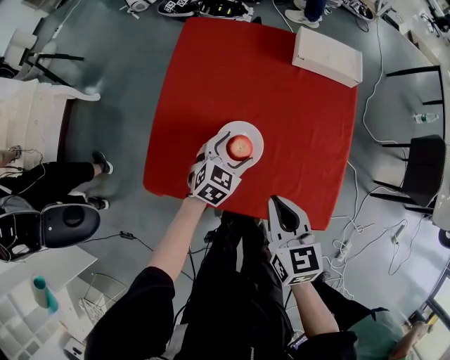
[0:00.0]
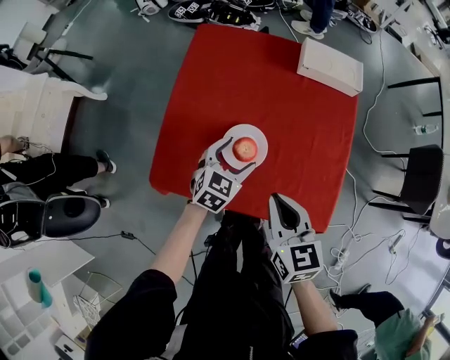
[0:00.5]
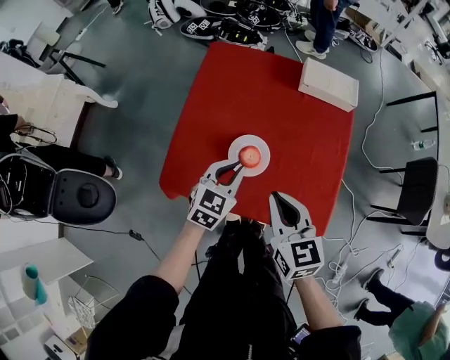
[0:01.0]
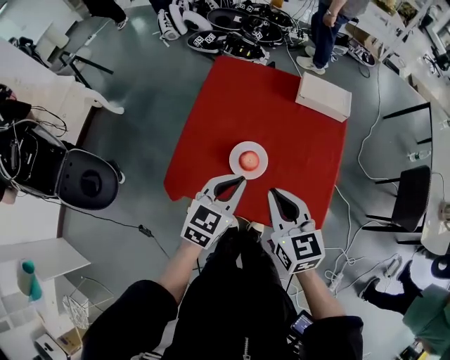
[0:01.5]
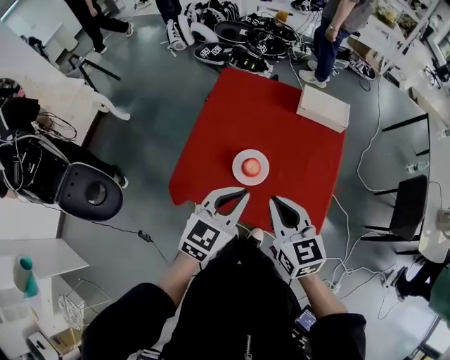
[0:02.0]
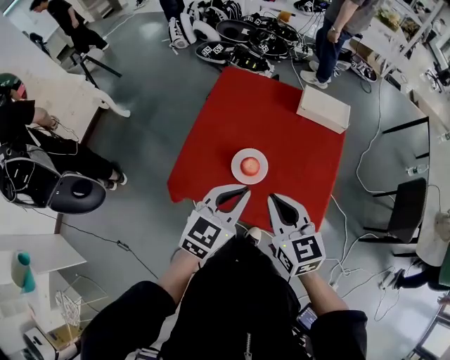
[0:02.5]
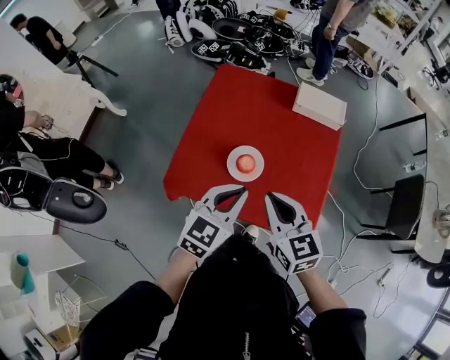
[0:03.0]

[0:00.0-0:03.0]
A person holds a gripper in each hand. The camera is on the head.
0:00.0 to 0:01.5: The right gripper heads upward, covering some 10 cm. Meanwhile the left gripper shifts roughly 25 cm upward and backward, turns by roughly 20 degrees, and closes.
0:01.5 to 0:03.0: The left gripper moves upward, approximately 5 cm.

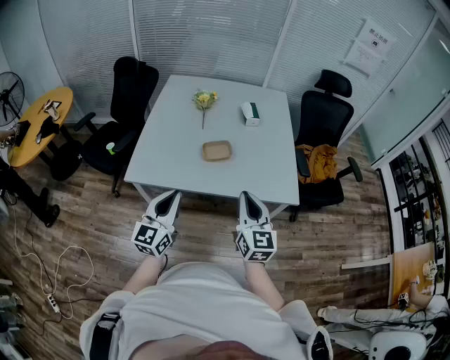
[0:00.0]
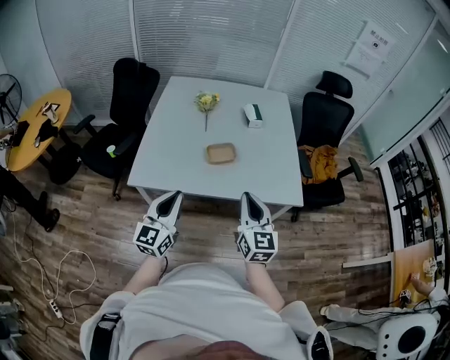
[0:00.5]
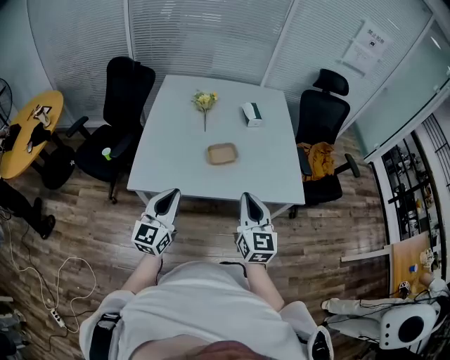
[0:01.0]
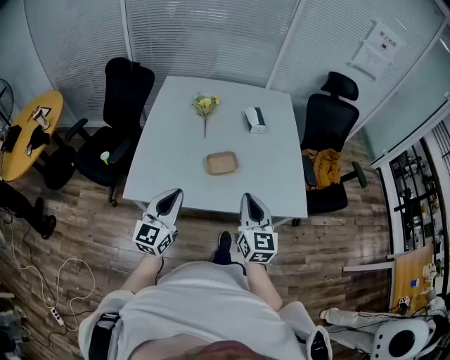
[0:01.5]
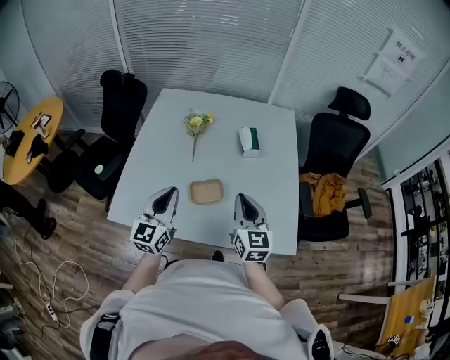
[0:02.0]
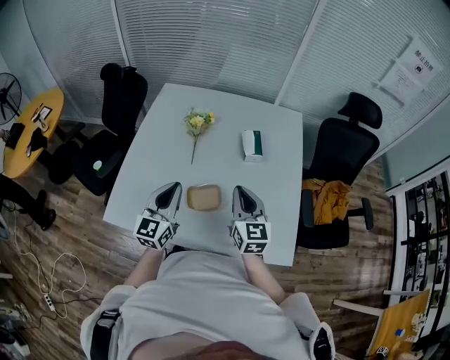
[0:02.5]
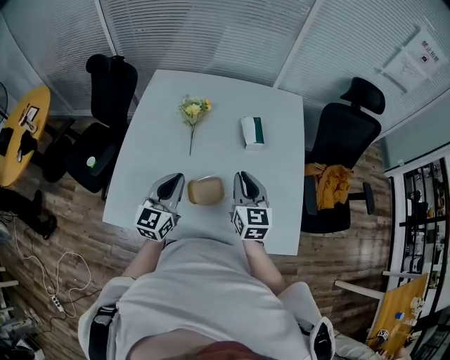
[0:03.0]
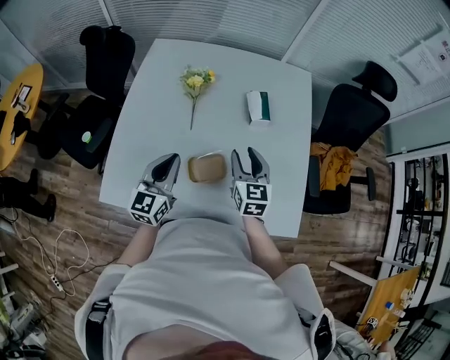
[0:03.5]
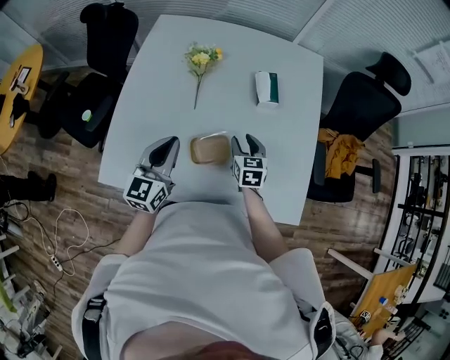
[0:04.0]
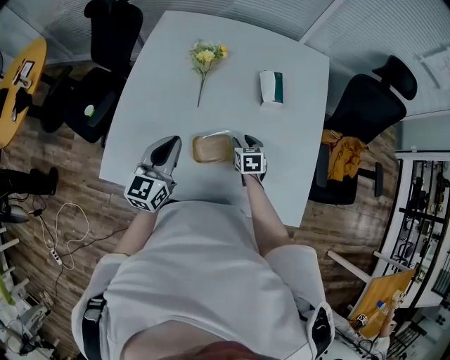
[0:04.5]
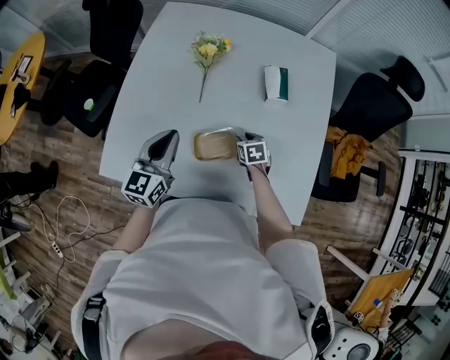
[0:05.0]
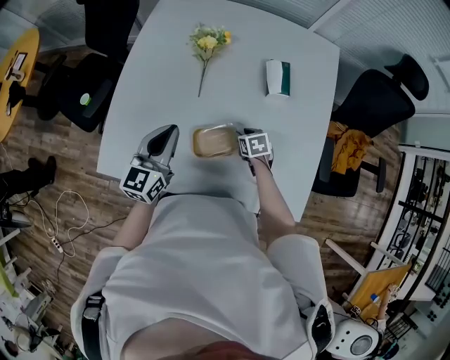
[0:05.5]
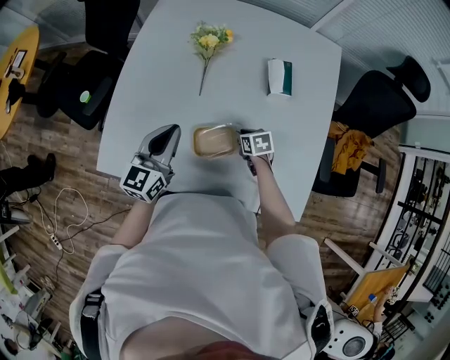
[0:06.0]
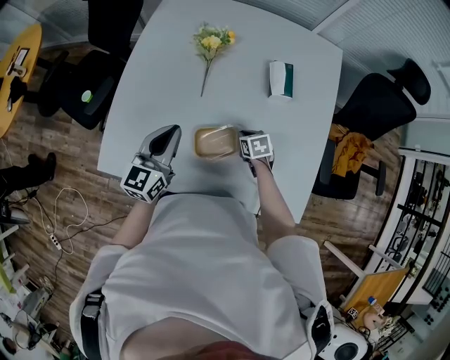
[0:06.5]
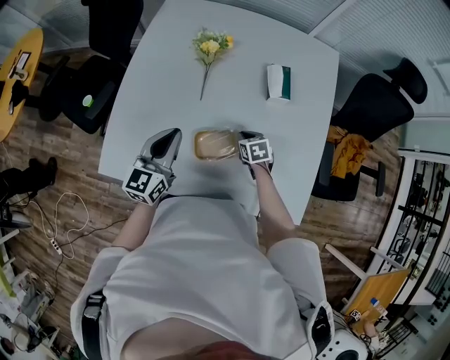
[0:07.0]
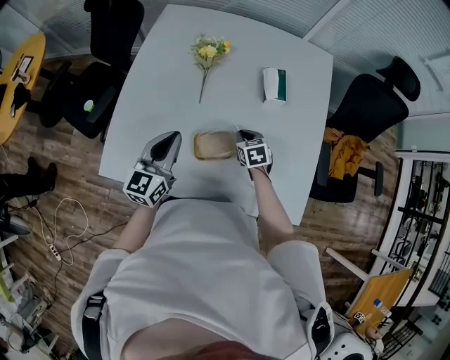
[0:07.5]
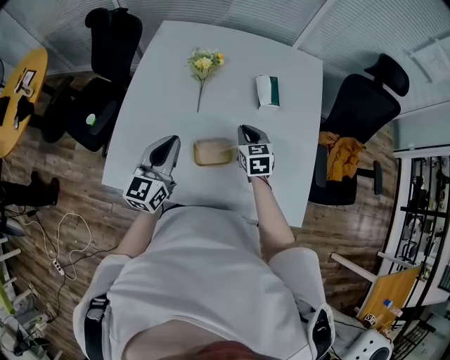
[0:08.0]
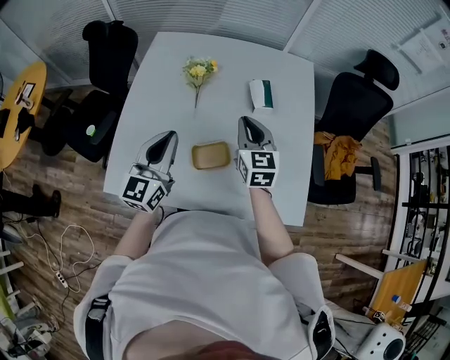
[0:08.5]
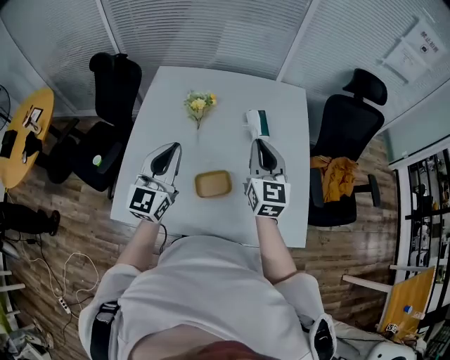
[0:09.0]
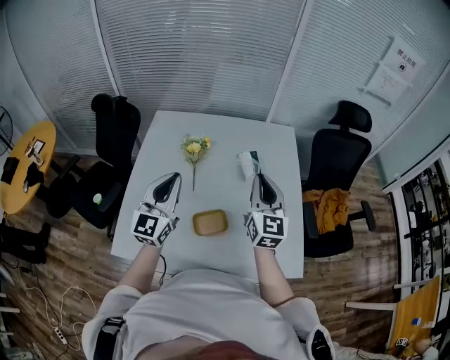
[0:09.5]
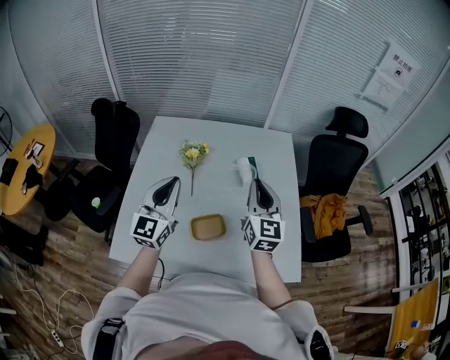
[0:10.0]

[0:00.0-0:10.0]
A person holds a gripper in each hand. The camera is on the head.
0:00.0 to 0:02.0: The two grippers go roughly 25 cm forward.
0:02.0 to 0:04.0: The left gripper heads forward and downward, covering approximately 15 cm. The right gripper is displaced downward and forward by roughly 25 cm, swivels roughly 30 degrees, and opens up.
0:04.0 to 0:06.0: The right gripper shifts approximately 15 cm downward, and swivels roughly 30 degrees.
0:06.0 to 0:08.0: The left gripper is displaced upward by about 5 cm. Meanwhile the right gripper travels upward by about 20 cm, and swivels roughly 30 degrees.
0:08.0 to 0:10.0: The left gripper is displaced upward by roughly 15 cm, and swivels approximately 20 degrees, while the right gripper heads upward, covering some 25 cm, and tilts its fingers roughly 40 degrees upward.

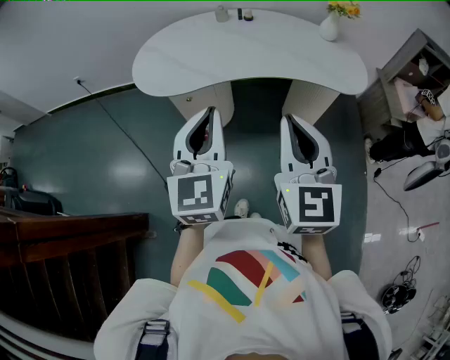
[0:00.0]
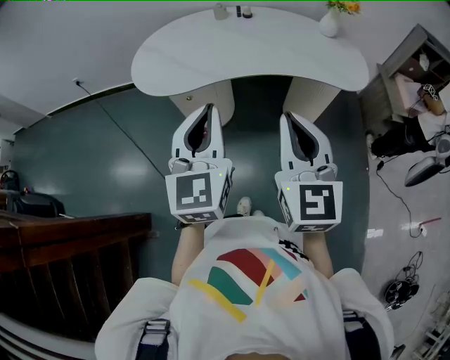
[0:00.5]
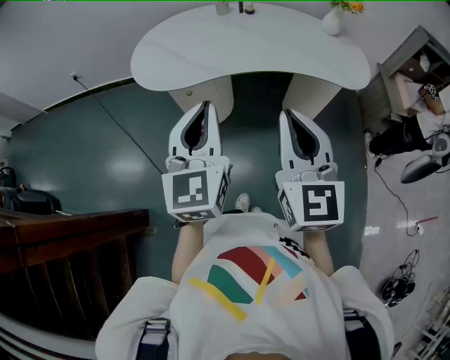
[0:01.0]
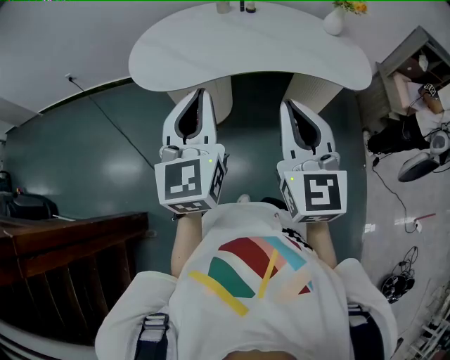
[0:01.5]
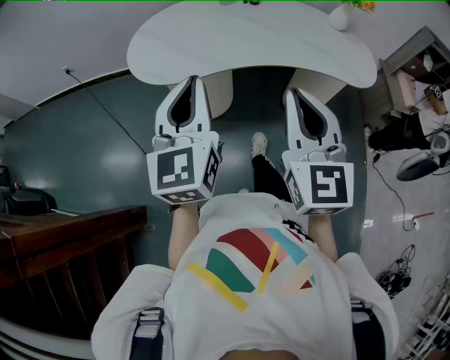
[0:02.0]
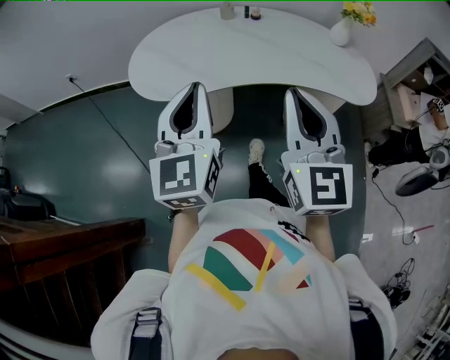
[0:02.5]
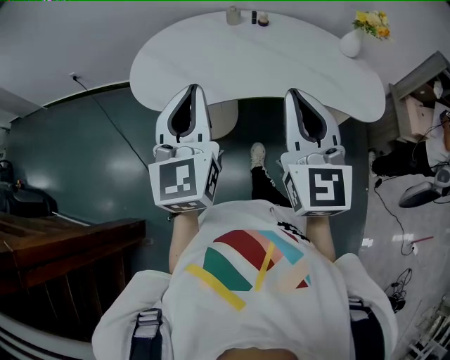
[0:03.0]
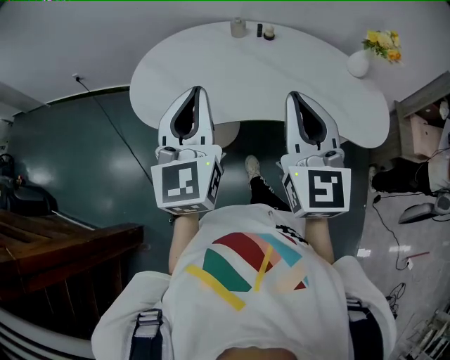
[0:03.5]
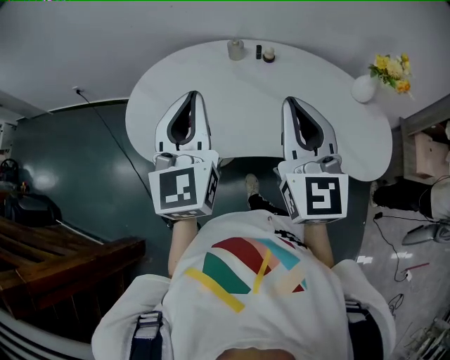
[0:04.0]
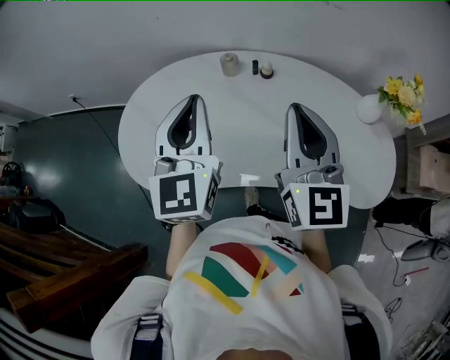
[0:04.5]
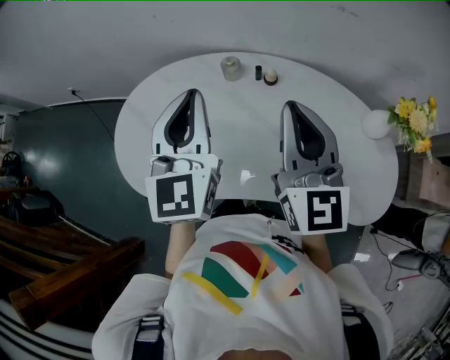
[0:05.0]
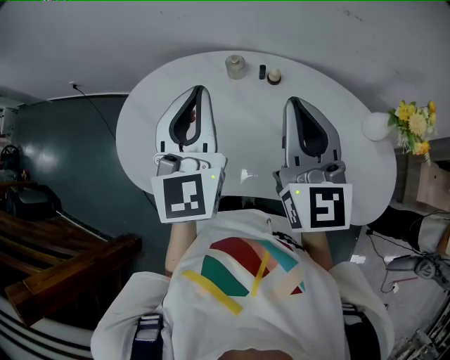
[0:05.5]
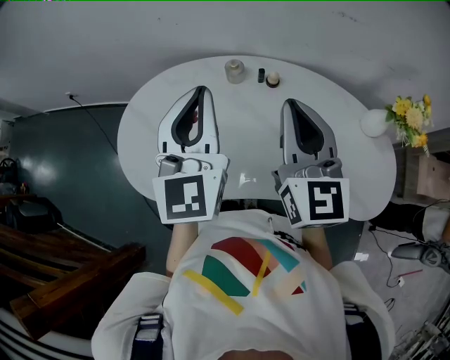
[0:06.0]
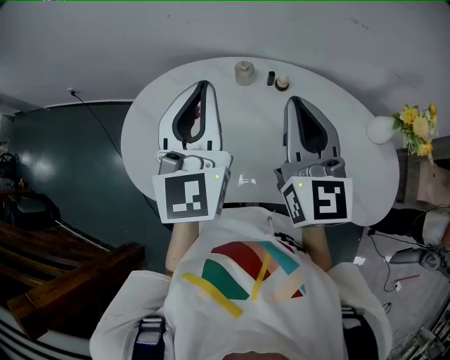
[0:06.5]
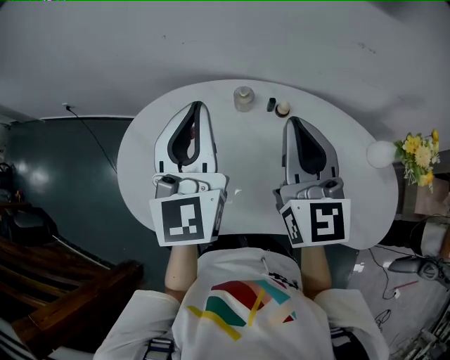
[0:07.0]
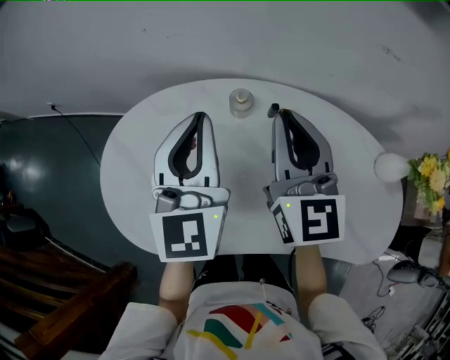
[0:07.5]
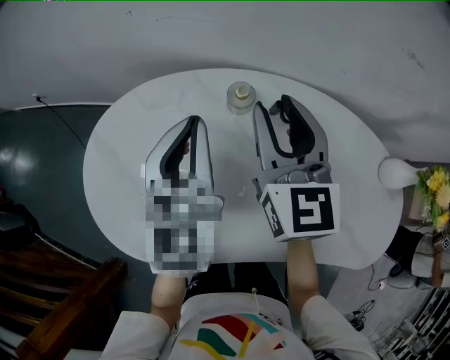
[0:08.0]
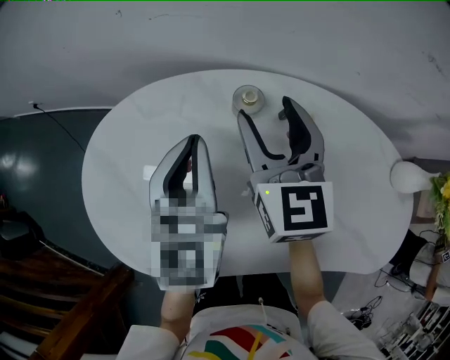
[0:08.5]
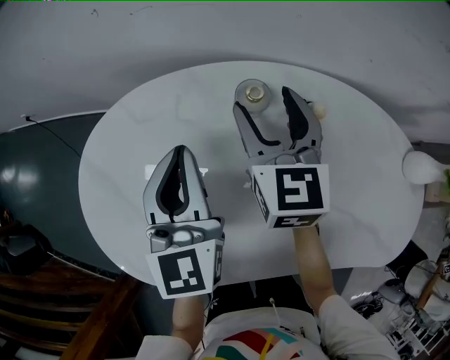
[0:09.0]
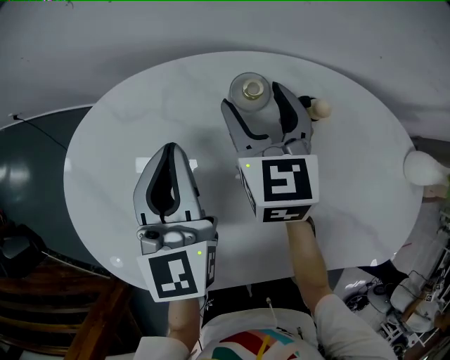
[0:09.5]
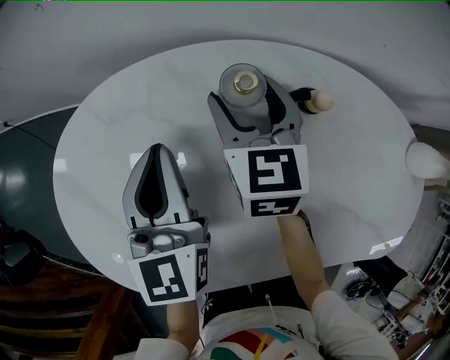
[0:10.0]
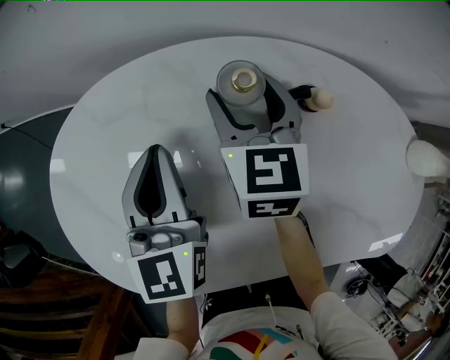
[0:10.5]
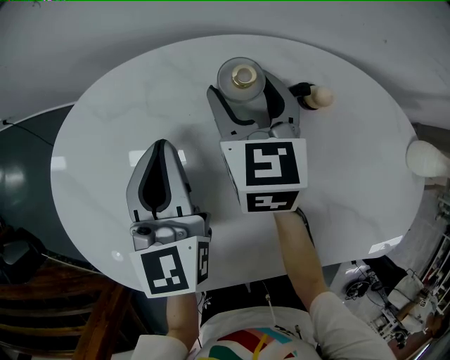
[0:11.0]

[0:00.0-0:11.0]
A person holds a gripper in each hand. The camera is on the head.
0:00.0 to 0:02.0: The left gripper is displaced to the left and forward by roughly 10 cm, while the right gripper heads forward, covering approximately 5 cm.
0:02.0 to 0:03.5: Both grippers travel together forward, about 15 cm.
0:03.5 to 0:05.5: Both grippers travel together forward, approximately 25 cm.
0:05.5 to 0:07.5: Both grippers travel together forward and downward, roughly 15 cm.
0:07.5 to 0:09.0: The left gripper goes roughly 15 cm downward, while the right gripper travels downward and forward by some 20 cm, and opens up.
0:09.0 to 0:11.0: The two grippers go some 10 cm downward.

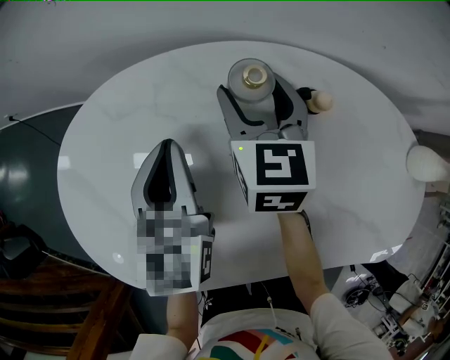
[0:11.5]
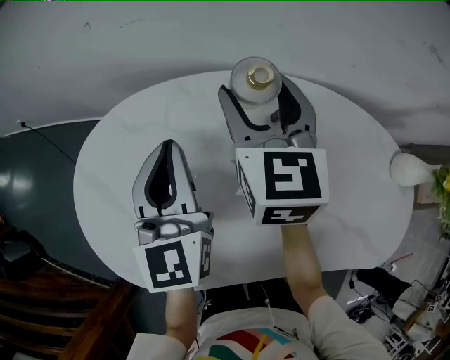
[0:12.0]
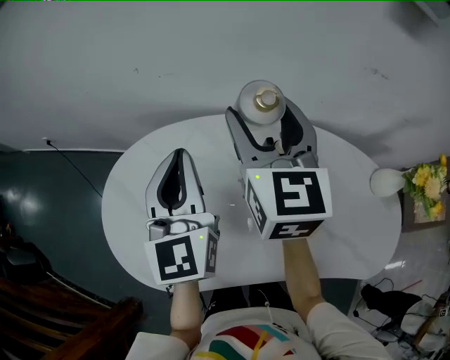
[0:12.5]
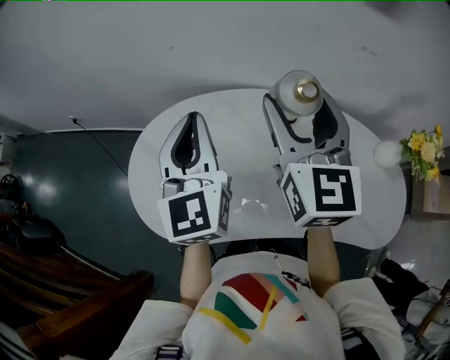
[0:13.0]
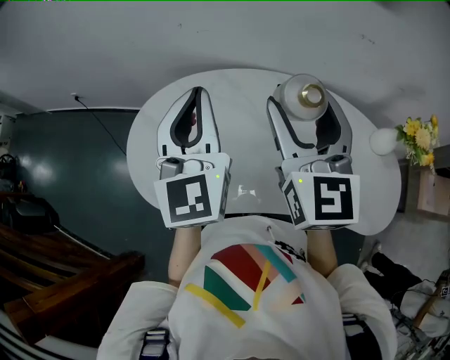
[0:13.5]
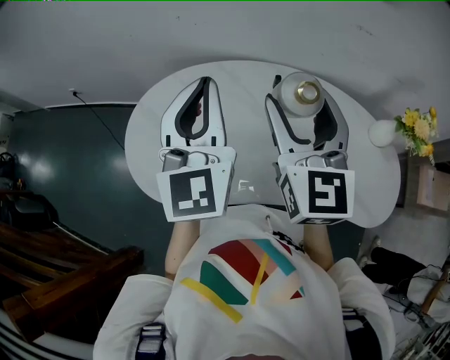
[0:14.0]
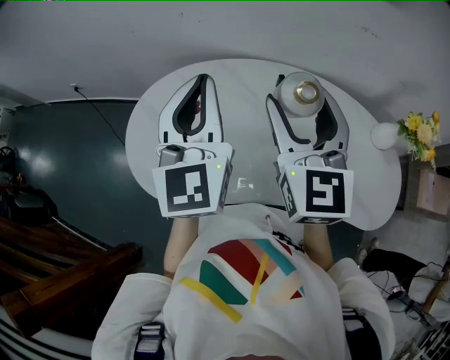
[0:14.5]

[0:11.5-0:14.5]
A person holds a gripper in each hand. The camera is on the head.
0:11.5 to 0:13.0: Both grippers move upward and backward, some 35 cm. The right gripper turns by roughly 30 degrees; the left gripper turns by some 20 degrees.
0:13.0 to 0:14.5: Both grippers travel together backward, about 10 cm.
